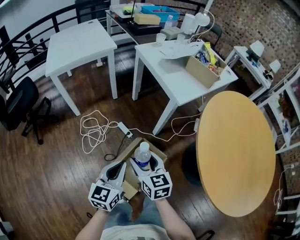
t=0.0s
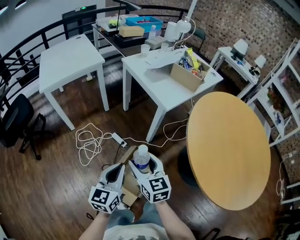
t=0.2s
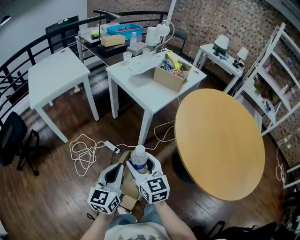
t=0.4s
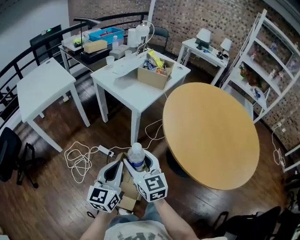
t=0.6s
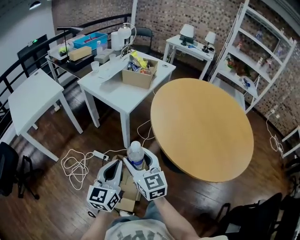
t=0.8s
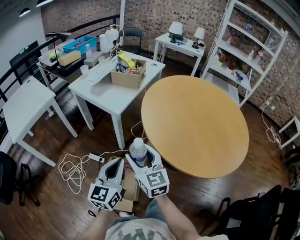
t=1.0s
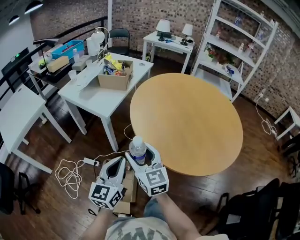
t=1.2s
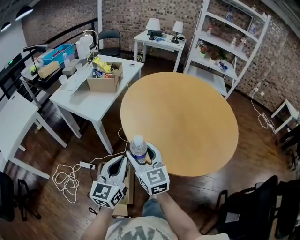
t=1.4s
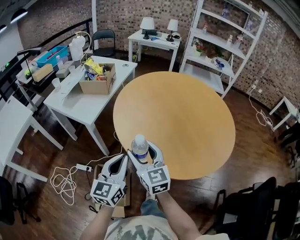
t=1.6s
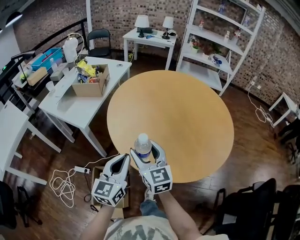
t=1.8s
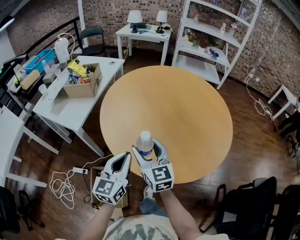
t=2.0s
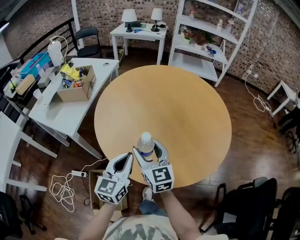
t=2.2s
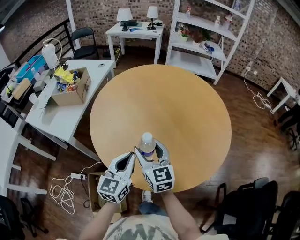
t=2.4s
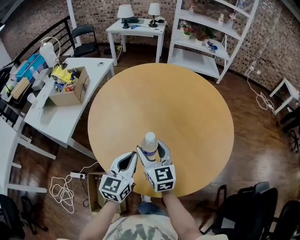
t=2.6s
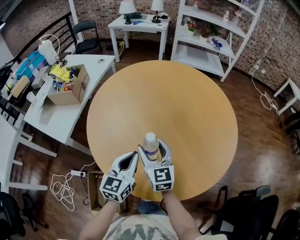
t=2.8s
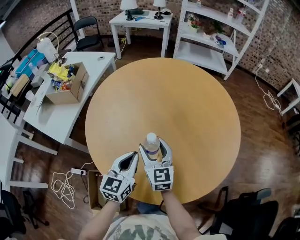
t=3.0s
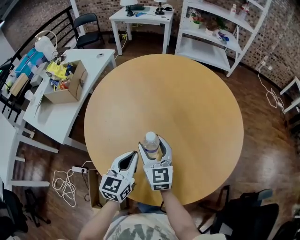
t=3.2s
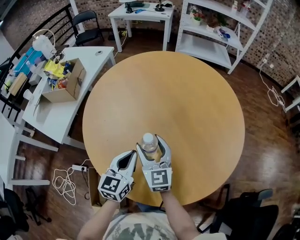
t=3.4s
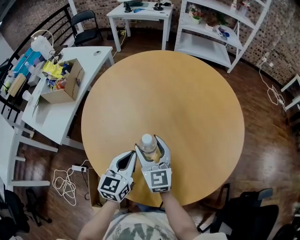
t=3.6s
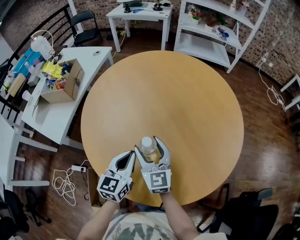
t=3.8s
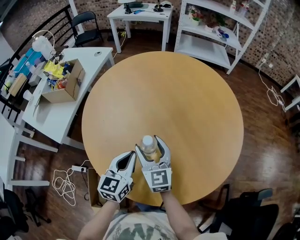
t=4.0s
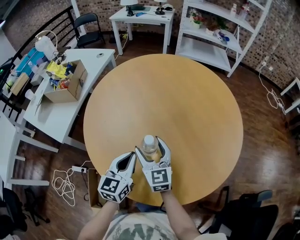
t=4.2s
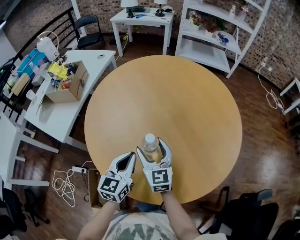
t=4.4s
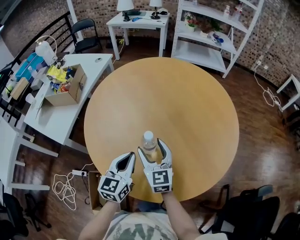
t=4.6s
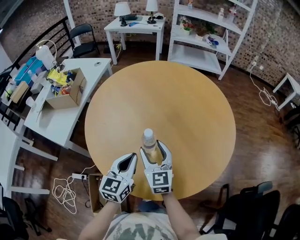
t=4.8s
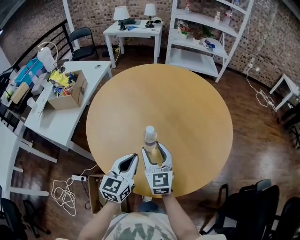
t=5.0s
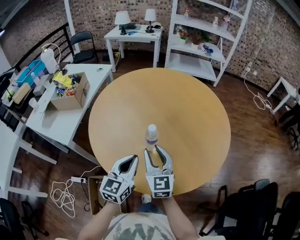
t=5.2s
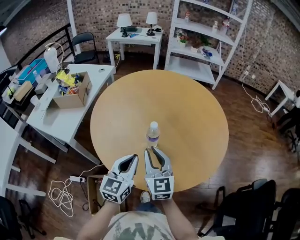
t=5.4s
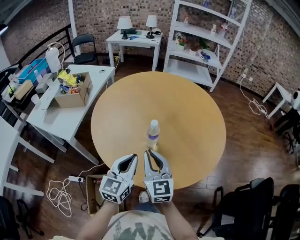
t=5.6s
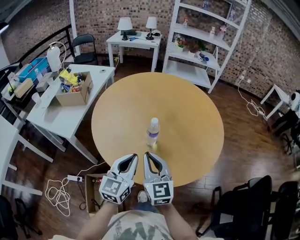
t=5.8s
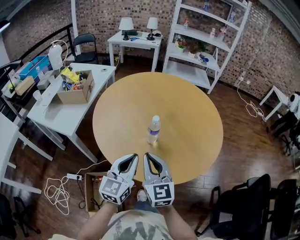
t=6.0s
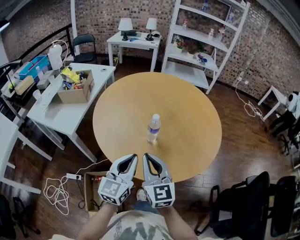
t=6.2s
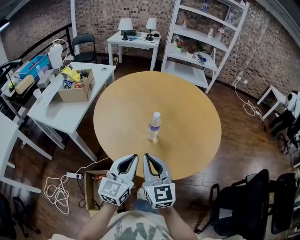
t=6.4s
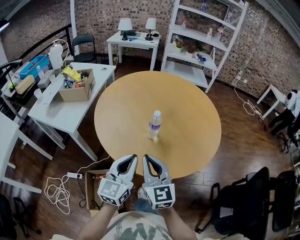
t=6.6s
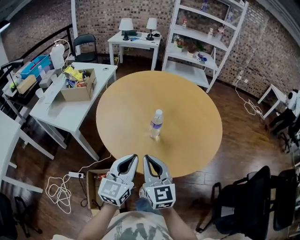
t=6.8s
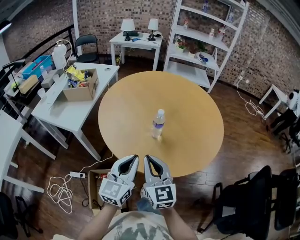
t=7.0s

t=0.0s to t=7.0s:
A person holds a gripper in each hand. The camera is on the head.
t=0.0s to t=1.4s: The left gripper ends up roughly 30 cm from where it was, and changes its angle by approximately 40 degrees, while the right gripper changes place by some 35 cm, and swivels about 40 degrees.
t=1.4s to t=2.8s: The right gripper goes roughly 30 cm to the right and forward. Meanwhile the left gripper heads forward and to the right, covering some 30 cm.
t=2.8s to t=4.2s: The grippers move only a little.
t=4.2s to t=5.6s: Both grippers travel together backward and upward, roughly 15 cm. The right gripper closes its fingers.
t=5.6s to t=7.0s: The grippers both shift backward by roughly 10 cm.

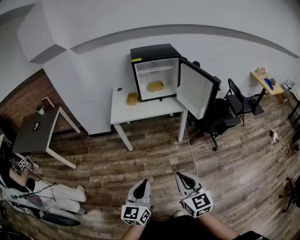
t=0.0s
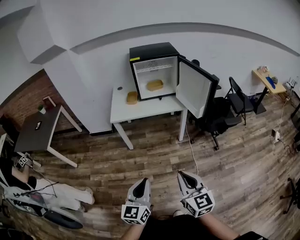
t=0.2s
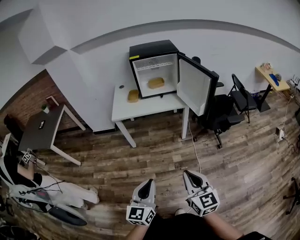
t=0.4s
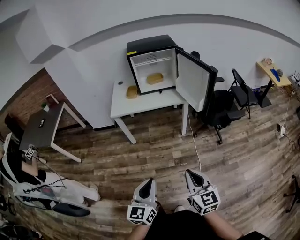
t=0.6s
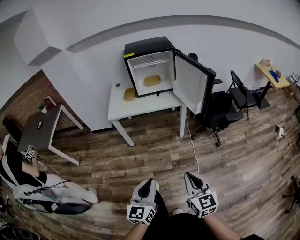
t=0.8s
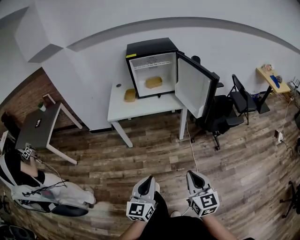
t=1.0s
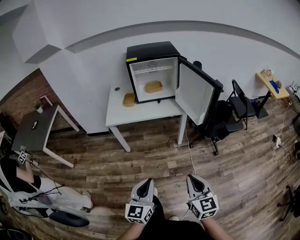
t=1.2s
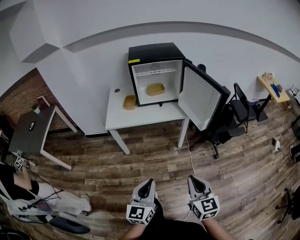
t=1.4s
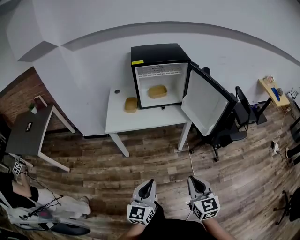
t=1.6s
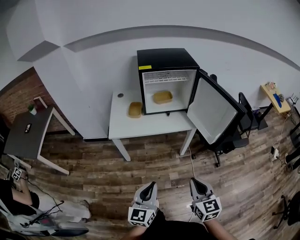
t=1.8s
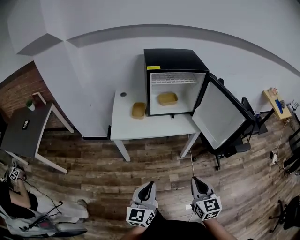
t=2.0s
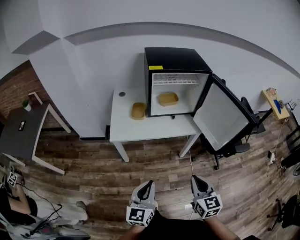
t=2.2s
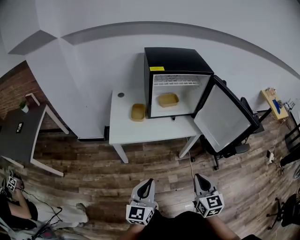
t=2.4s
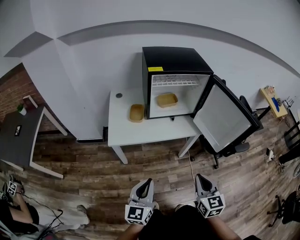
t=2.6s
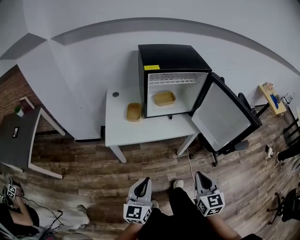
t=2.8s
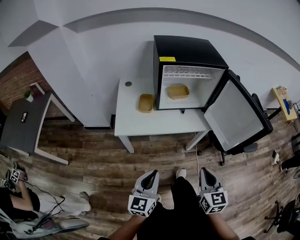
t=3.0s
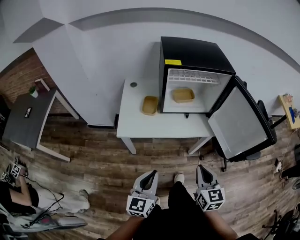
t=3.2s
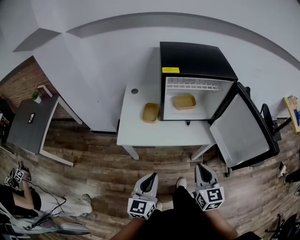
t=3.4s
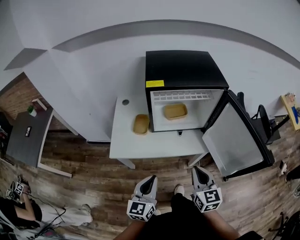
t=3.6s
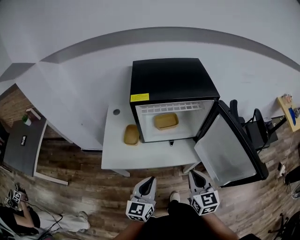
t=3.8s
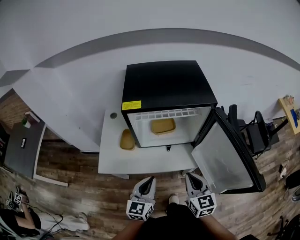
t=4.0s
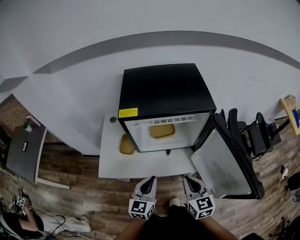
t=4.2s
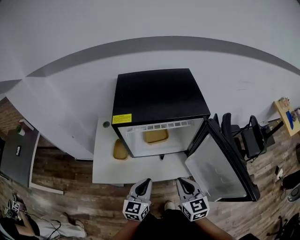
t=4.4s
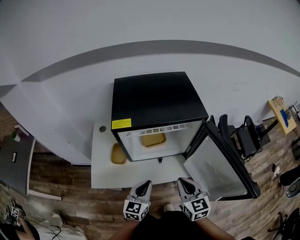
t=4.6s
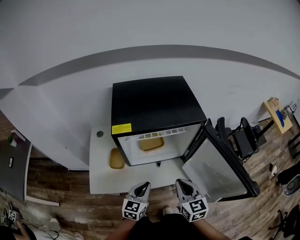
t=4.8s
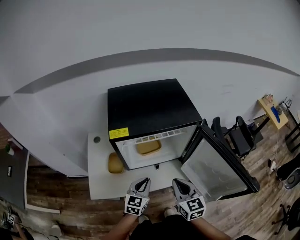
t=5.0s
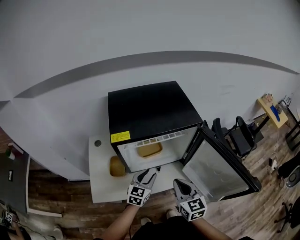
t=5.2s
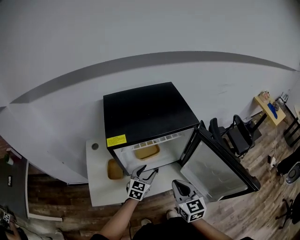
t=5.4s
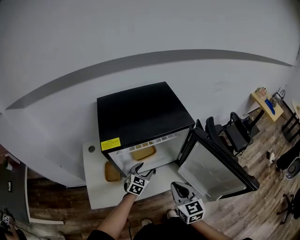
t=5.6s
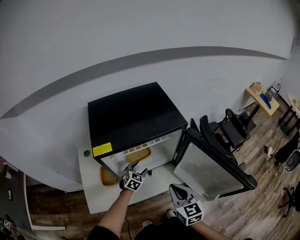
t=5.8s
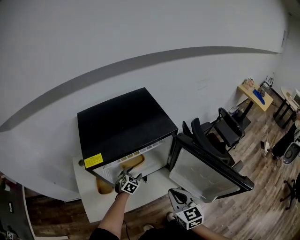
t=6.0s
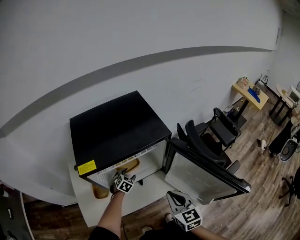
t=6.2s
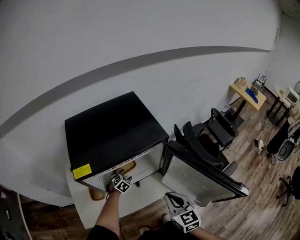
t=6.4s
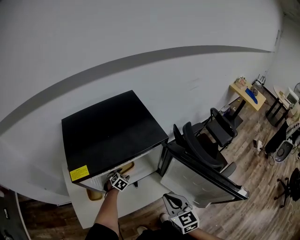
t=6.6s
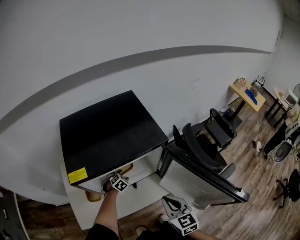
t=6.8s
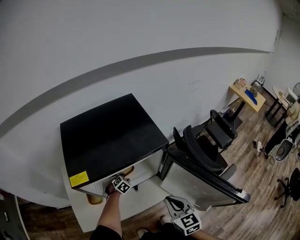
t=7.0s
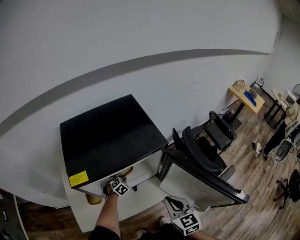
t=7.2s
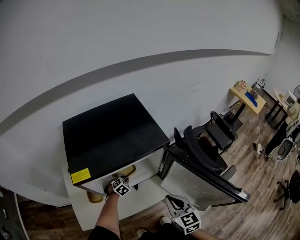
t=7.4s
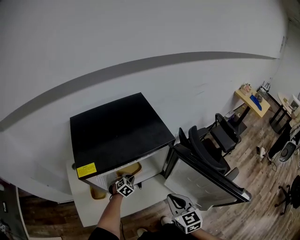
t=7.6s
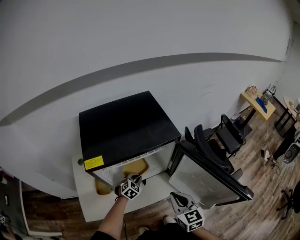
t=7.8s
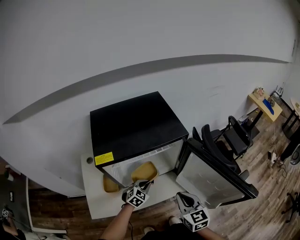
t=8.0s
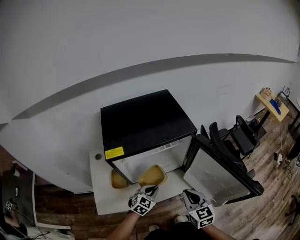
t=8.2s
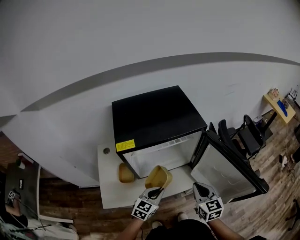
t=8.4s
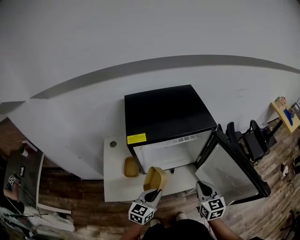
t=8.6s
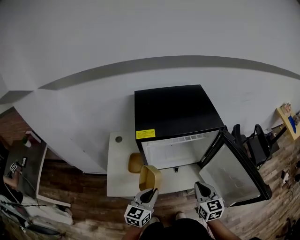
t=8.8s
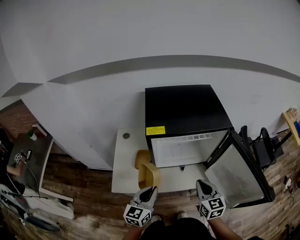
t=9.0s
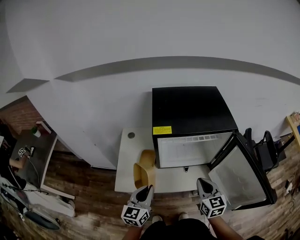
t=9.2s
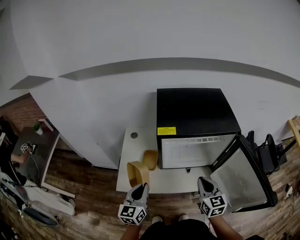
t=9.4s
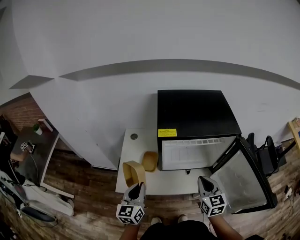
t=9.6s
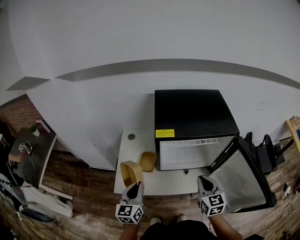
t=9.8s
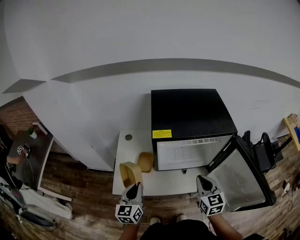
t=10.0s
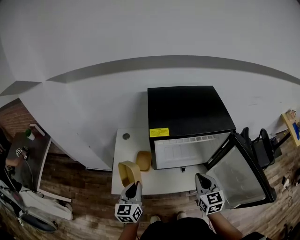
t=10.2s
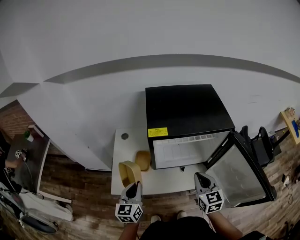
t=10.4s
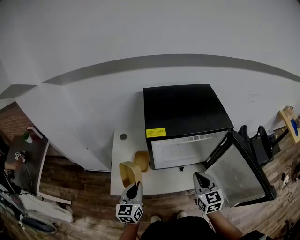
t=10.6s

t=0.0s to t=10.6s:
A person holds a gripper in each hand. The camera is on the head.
t=0.0s to t=1.6s: The two grippers go some 20 cm forward.
t=1.6s to t=3.0s: The two grippers go about 20 cm forward and to the left.
t=3.0s to t=4.6s: The right gripper heads forward, covering about 30 cm. The left gripper shifts roughly 35 cm forward and to the right.
t=4.6s to t=6.0s: The left gripper moves forward and downward, approximately 25 cm, points its fingers some 30 degrees further downward, and opens up.
t=6.0s to t=7.6s: The left gripper closes.
t=7.6s to t=9.0s: The left gripper heads backward and upward, covering roughly 40 cm, and angles its fingers upward, by approximately 40 degrees, while the right gripper travels to the left by about 5 cm.
t=9.0s to t=10.6s: The right gripper ends up some 5 cm from where it was. Meanwhile the left gripper goes about 10 cm to the left.

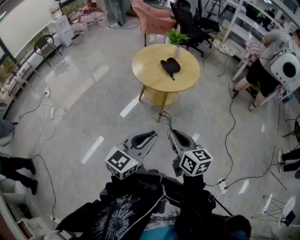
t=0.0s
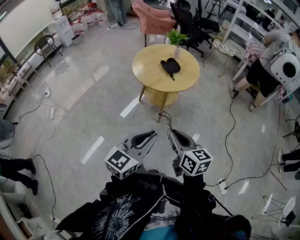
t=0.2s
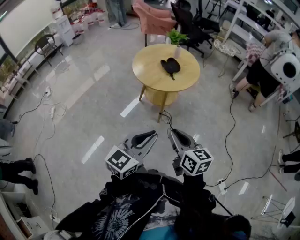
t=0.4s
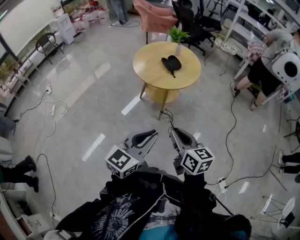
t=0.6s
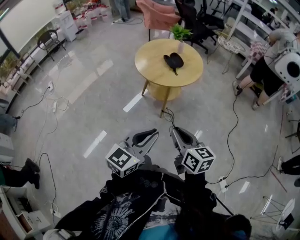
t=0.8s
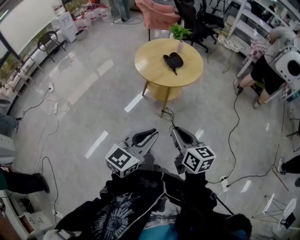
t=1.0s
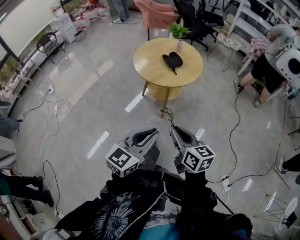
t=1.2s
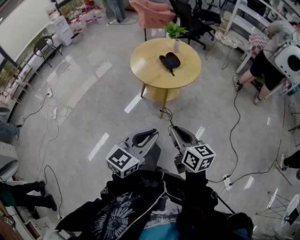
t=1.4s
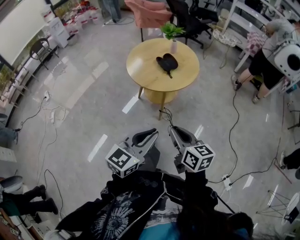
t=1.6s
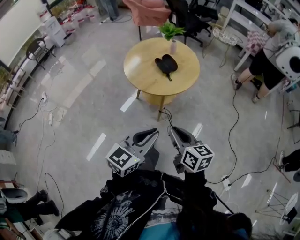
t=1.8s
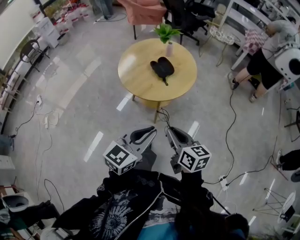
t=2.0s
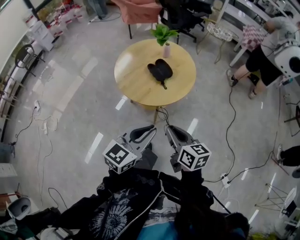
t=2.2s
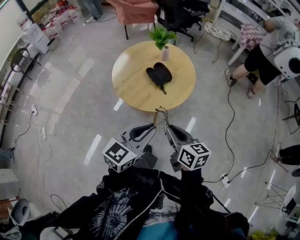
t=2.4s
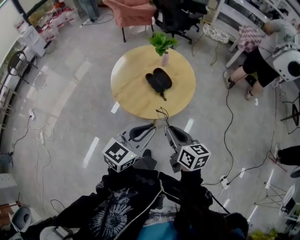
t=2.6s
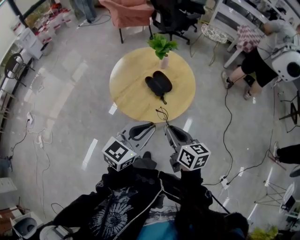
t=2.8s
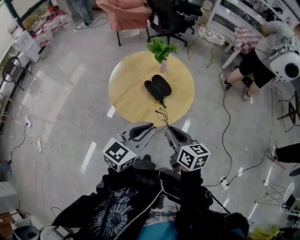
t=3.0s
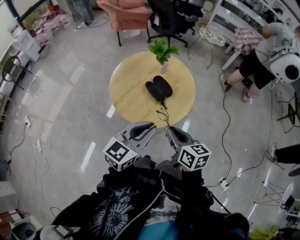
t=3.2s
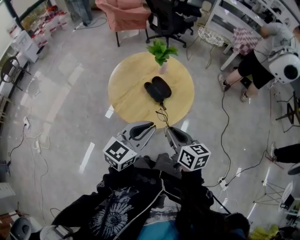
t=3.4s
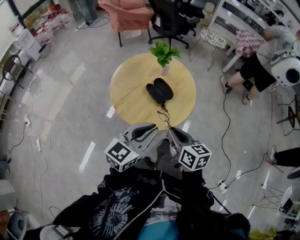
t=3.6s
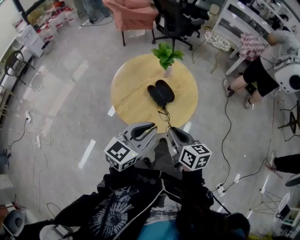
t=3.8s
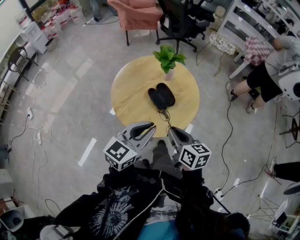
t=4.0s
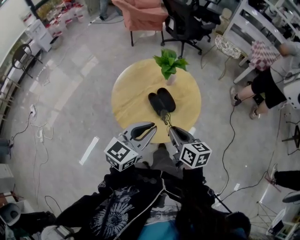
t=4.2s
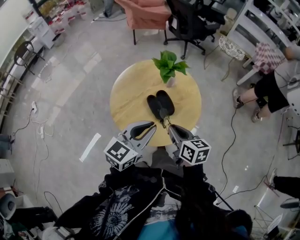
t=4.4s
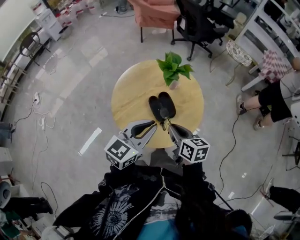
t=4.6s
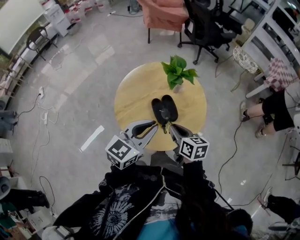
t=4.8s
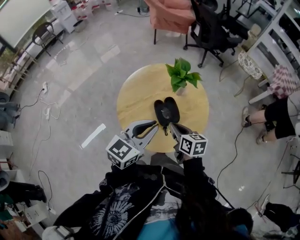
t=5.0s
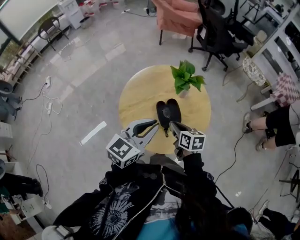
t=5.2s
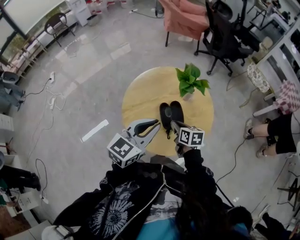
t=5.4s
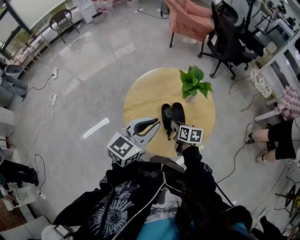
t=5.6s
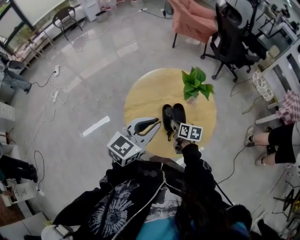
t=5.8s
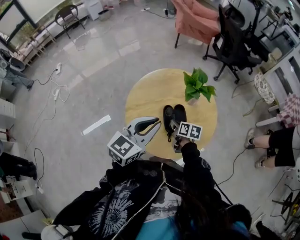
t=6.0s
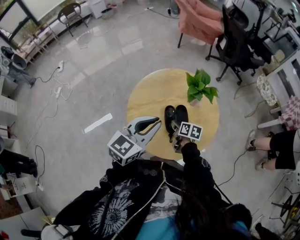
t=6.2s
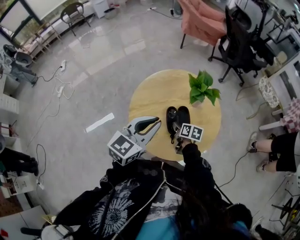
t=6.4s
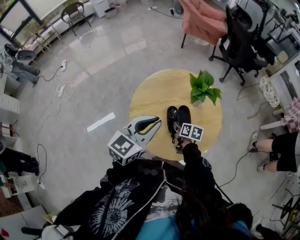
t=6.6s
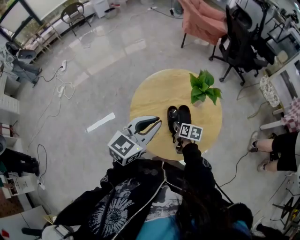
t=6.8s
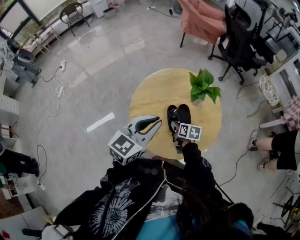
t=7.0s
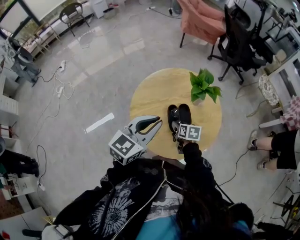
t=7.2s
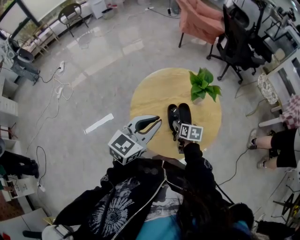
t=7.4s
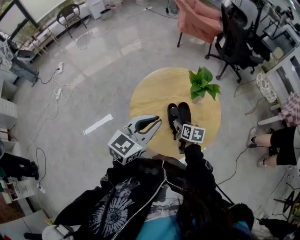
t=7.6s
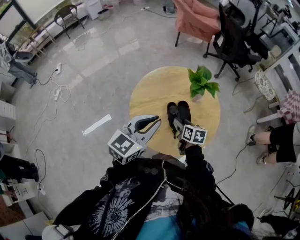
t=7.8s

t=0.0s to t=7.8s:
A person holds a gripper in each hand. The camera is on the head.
t=0.0s to t=1.6s: Both grippers move forward, roughly 5 cm.
t=1.6s to t=3.2s: Both grippers travel together forward, about 30 cm.
t=3.2s to t=4.6s: The two grippers go some 15 cm forward.
t=4.6s to t=6.2s: The right gripper shifts approximately 20 cm downward and forward, and changes its angle by approximately 20 degrees. Meanwhile the left gripper goes roughly 5 cm forward.
t=6.2s to t=7.8s: The right gripper heads upward, covering approximately 5 cm, and opens.
